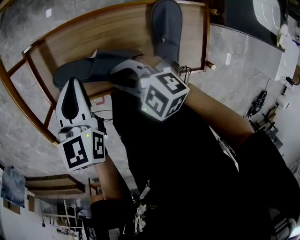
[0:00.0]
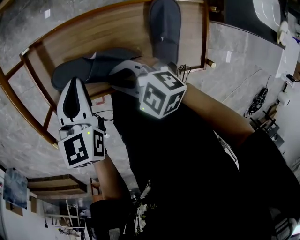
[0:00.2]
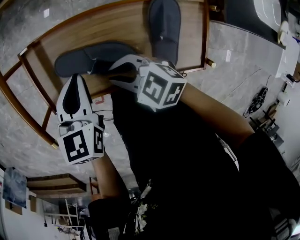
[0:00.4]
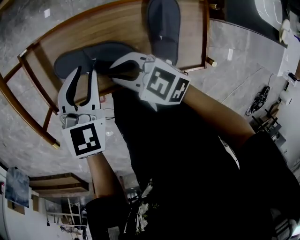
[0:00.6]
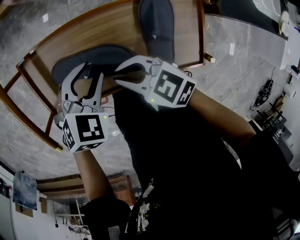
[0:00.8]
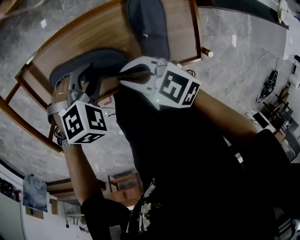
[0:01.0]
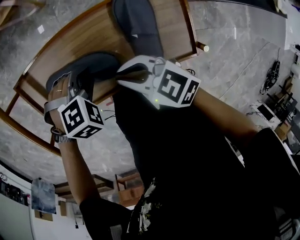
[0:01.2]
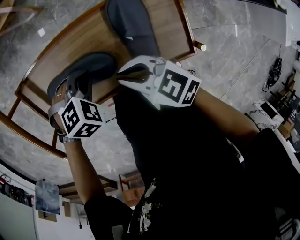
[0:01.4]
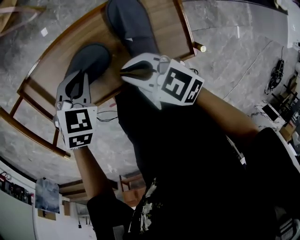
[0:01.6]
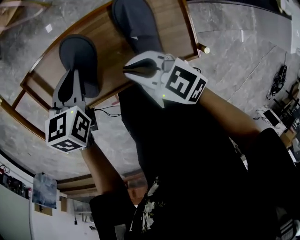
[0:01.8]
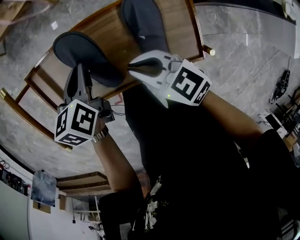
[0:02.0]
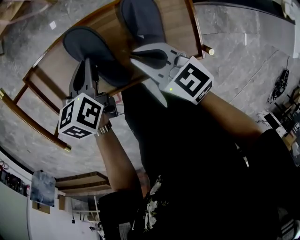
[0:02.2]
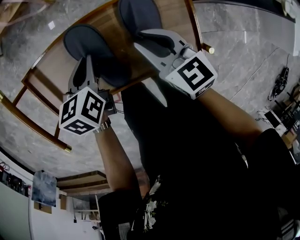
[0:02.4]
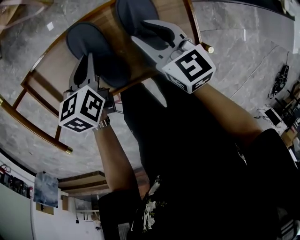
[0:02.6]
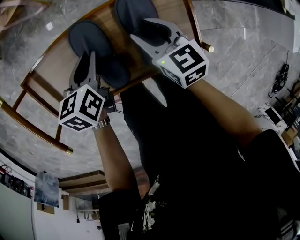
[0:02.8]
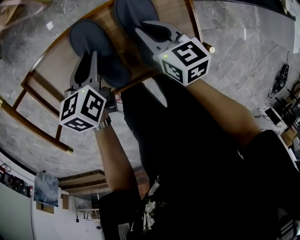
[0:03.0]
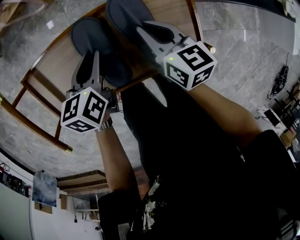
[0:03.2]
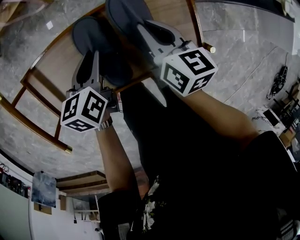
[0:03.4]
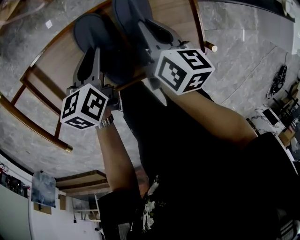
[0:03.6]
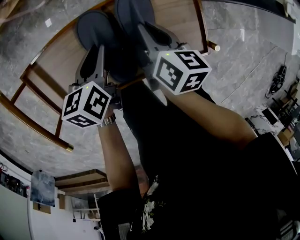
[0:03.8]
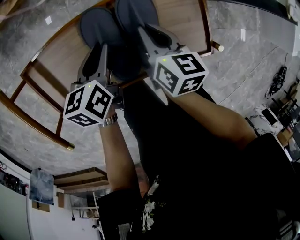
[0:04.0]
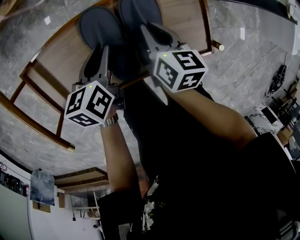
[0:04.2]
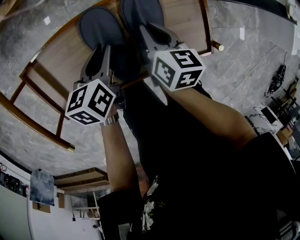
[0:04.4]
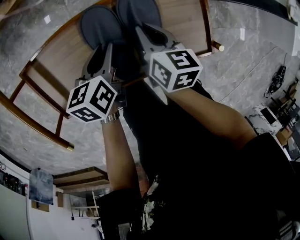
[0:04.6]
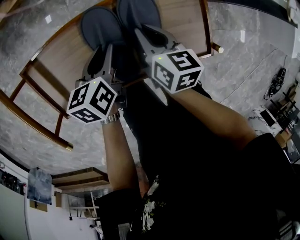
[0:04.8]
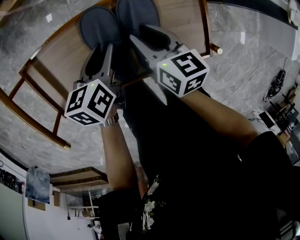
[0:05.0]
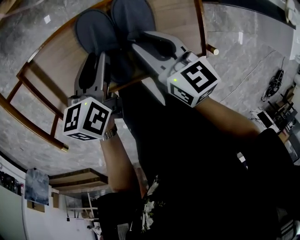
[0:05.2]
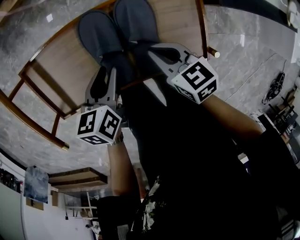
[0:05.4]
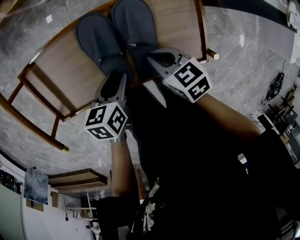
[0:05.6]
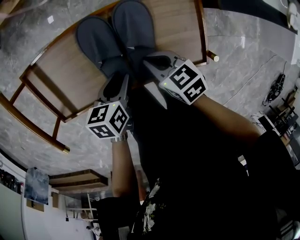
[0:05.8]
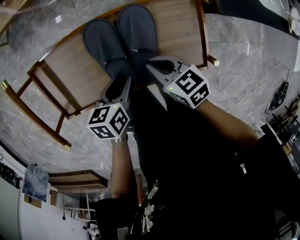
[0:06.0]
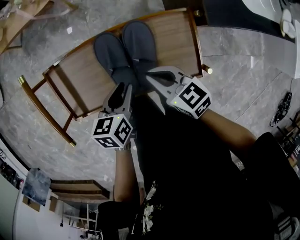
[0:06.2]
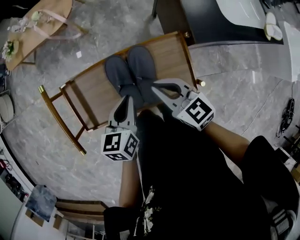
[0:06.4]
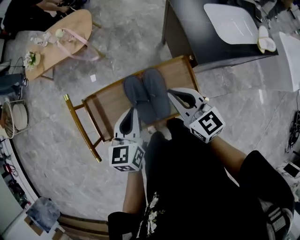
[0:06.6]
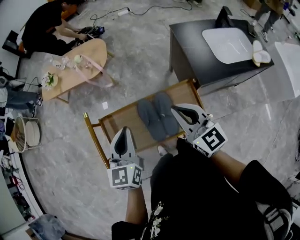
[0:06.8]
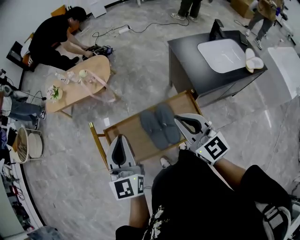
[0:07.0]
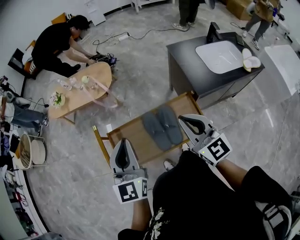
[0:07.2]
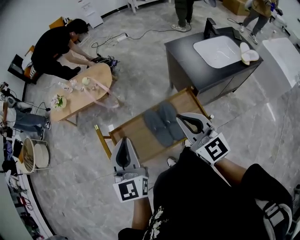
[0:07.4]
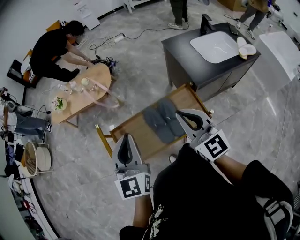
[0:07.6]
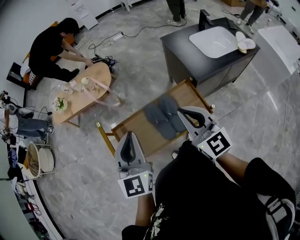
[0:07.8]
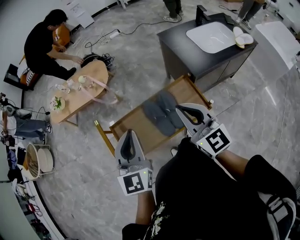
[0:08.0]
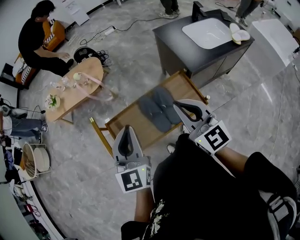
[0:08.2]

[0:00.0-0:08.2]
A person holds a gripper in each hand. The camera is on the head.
0:00.0 to 0:01.6: The left gripper shifts by approximately 15 cm, twists about 50 degrees clockwise, seen from behind, and opens, then closes once more, while the right gripper shifts by some 10 cm, and turns by about 40 degrees.
0:01.6 to 0:03.2: The left gripper rotates around the line of its fingers by about 50 degrees, counterclockwise from behind, while the right gripper is displaced forward and to the right by approximately 10 cm, swivels about 40 degrees, and opens, then closes once more.
0:03.2 to 0:05.0: The right gripper opens up.
0:05.0 to 0:06.6: The grippers both shift upward by approximately 20 cm. The left gripper turns by about 30 degrees, and closes. Meanwhile the right gripper changes its angle by some 30 degrees, and closes up.
0:06.6 to 0:08.2: The left gripper travels upward and to the left by about 20 cm, and rotates about 30 degrees. Meanwhile the right gripper shifts roughly 15 cm upward and backward, and rotates some 30 degrees.

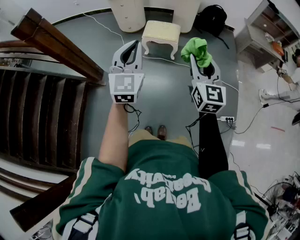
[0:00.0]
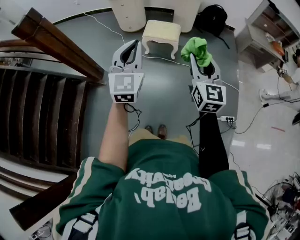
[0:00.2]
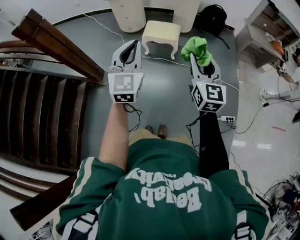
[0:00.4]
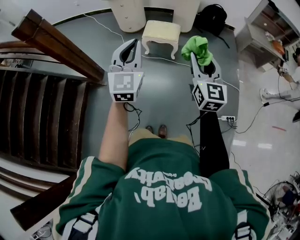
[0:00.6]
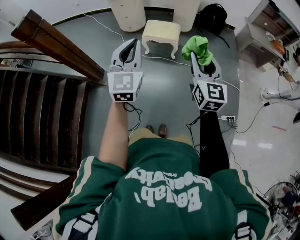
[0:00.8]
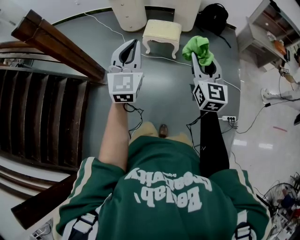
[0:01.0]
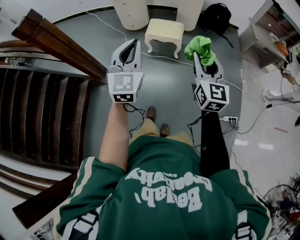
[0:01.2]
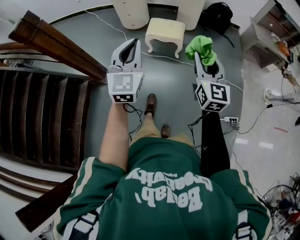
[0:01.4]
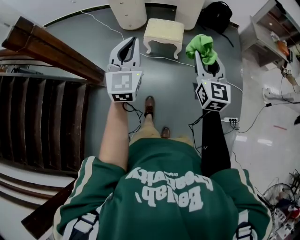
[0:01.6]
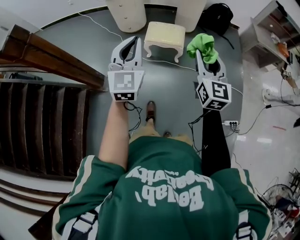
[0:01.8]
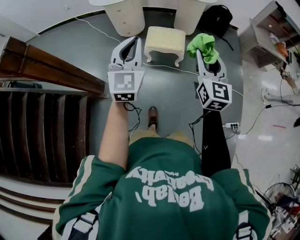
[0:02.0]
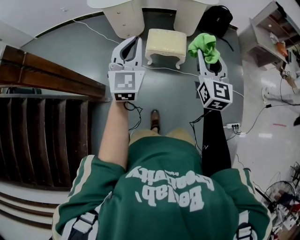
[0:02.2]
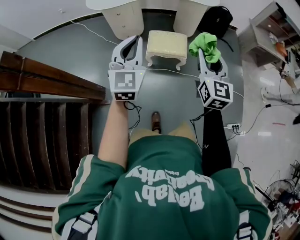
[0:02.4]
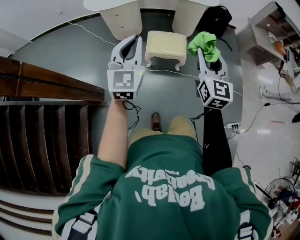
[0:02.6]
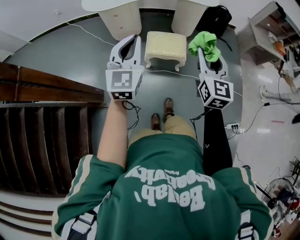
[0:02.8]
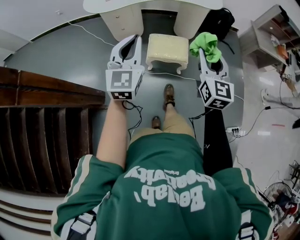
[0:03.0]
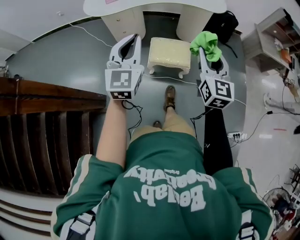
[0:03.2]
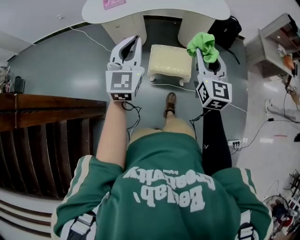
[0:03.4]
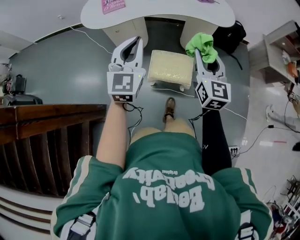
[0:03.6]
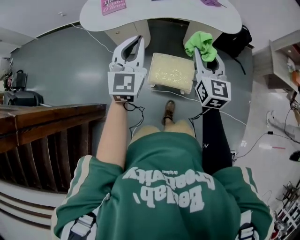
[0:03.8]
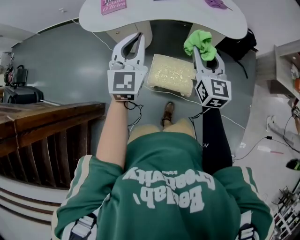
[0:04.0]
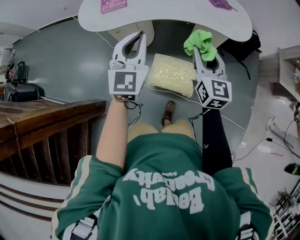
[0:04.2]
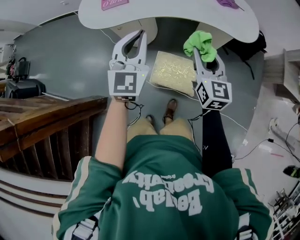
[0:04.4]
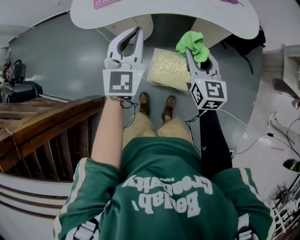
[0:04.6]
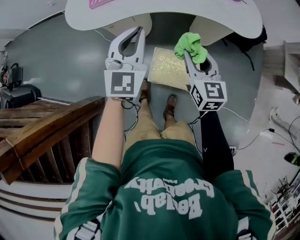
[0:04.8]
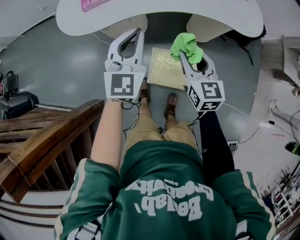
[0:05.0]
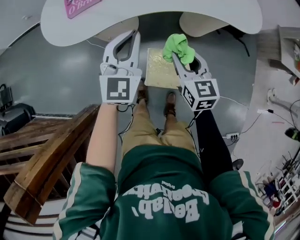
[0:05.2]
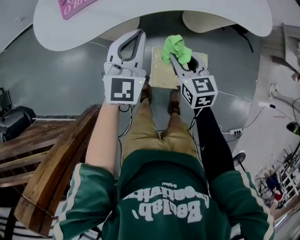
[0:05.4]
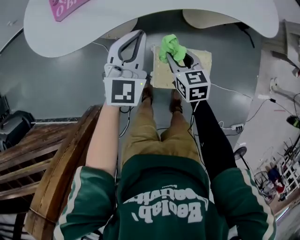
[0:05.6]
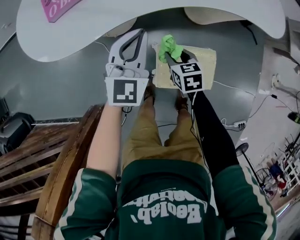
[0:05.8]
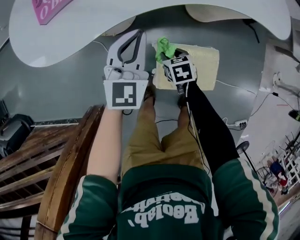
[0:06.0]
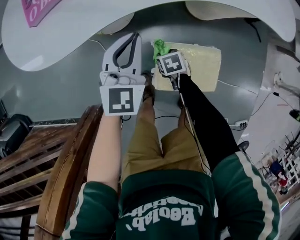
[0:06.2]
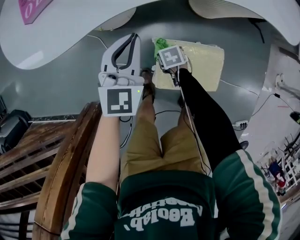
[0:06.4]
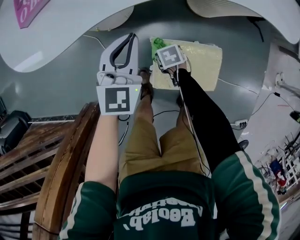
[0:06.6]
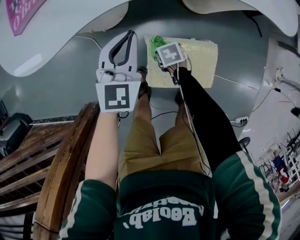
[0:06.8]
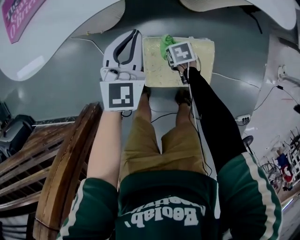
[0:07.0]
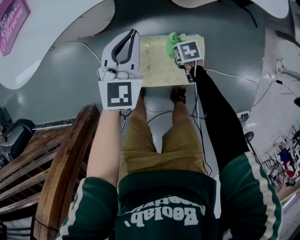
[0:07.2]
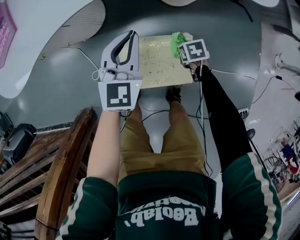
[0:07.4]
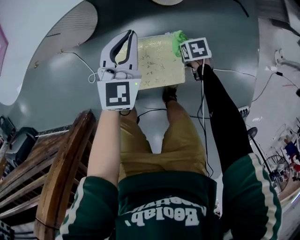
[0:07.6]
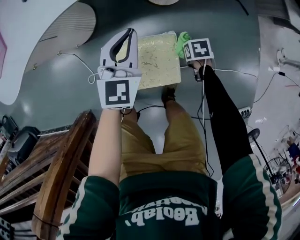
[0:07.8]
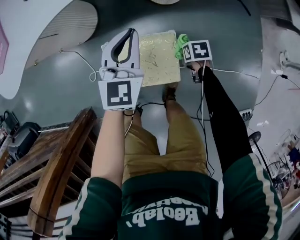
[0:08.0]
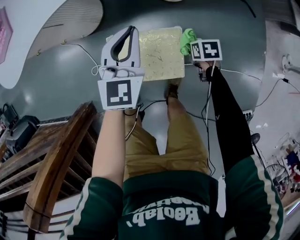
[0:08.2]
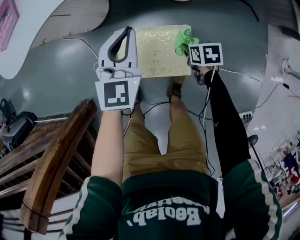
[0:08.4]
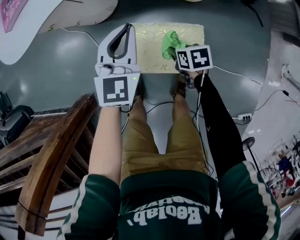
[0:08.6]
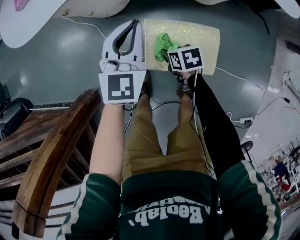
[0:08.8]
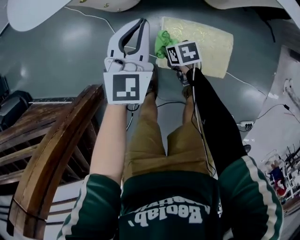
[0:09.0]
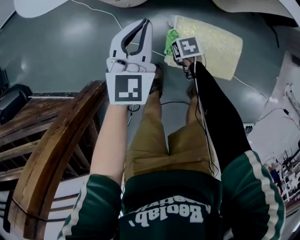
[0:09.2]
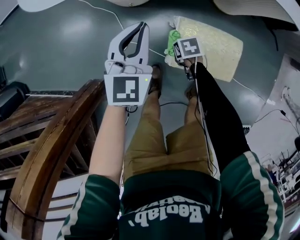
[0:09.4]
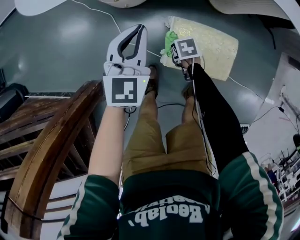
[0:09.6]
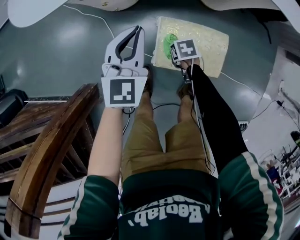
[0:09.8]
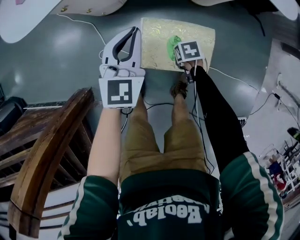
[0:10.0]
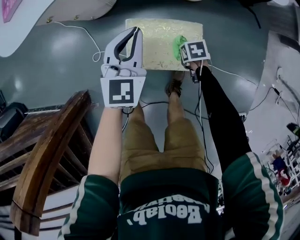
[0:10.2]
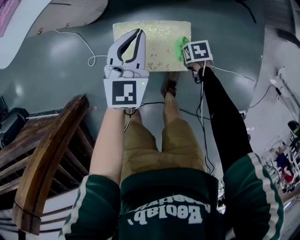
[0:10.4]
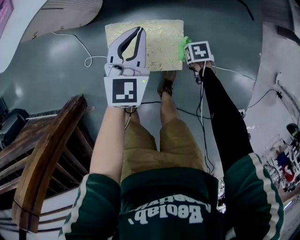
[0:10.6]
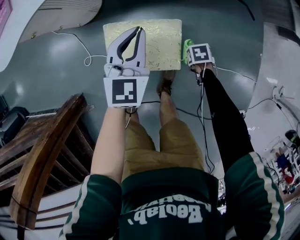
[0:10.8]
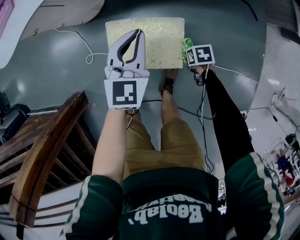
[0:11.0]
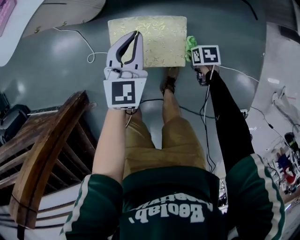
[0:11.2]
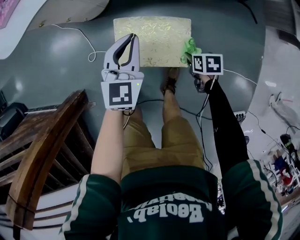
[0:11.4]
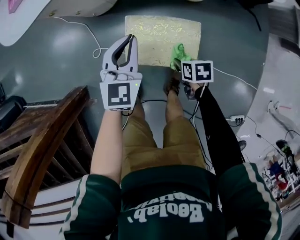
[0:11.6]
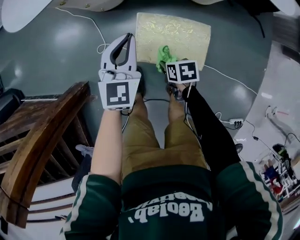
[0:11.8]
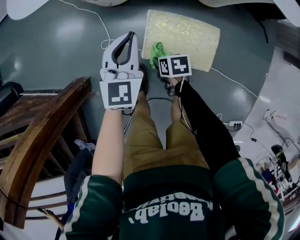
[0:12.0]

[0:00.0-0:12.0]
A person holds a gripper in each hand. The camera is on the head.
0:00.0 to 0:01.6: Both grippers travel together forward, about 10 cm.
0:01.6 to 0:03.0: The two grippers go approximately 25 cm forward.
0:03.0 to 0:04.4: Both grippers move forward, approximately 35 cm.
0:04.4 to 0:06.0: The right gripper heads downward and to the left, covering some 50 cm, and tilts its fingers approximately 50 degrees downward. The left gripper travels downward and forward by approximately 30 cm, and swivels about 20 degrees.
0:06.0 to 0:07.6: The right gripper ends up roughly 35 cm from where it was, and turns by approximately 20 degrees. Meanwhile the left gripper changes place by roughly 25 cm.
0:07.6 to 0:09.0: The left gripper ends up roughly 25 cm from where it was. Meanwhile the right gripper moves about 35 cm, and swivels roughly 20 degrees.
0:09.0 to 0:10.4: The left gripper moves roughly 20 cm. The right gripper changes place by about 30 cm, and rotates approximately 20 degrees.
0:10.4 to 0:12.0: The left gripper changes place by about 20 cm, while the right gripper ends up approximately 30 cm from where it was.

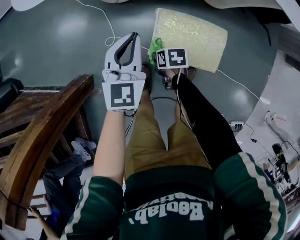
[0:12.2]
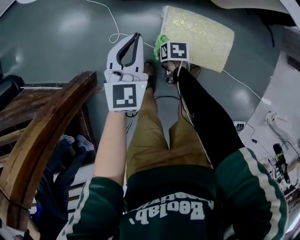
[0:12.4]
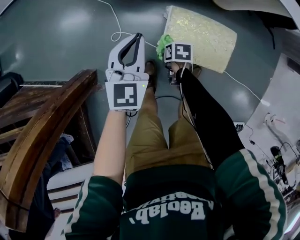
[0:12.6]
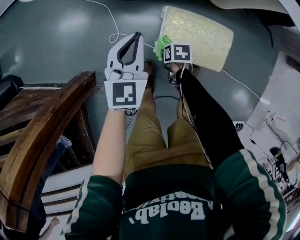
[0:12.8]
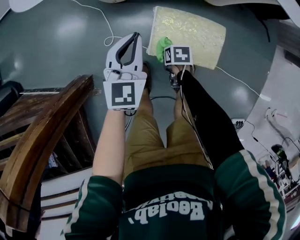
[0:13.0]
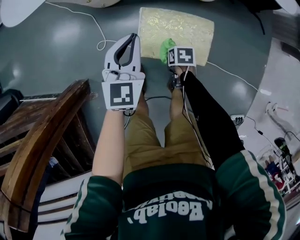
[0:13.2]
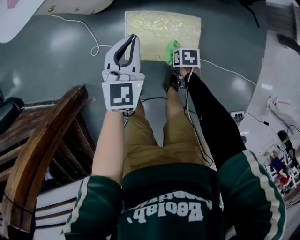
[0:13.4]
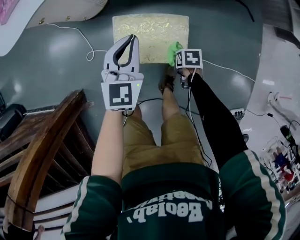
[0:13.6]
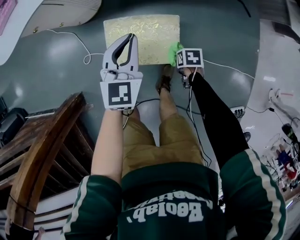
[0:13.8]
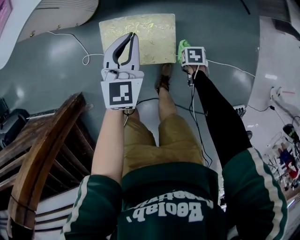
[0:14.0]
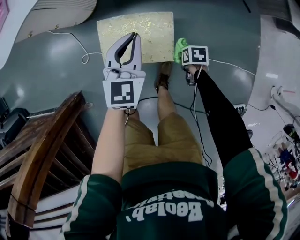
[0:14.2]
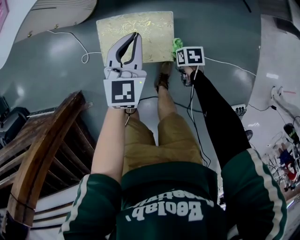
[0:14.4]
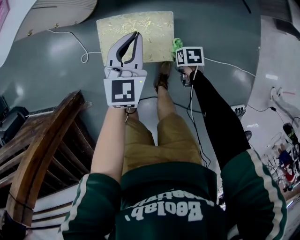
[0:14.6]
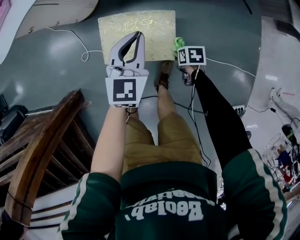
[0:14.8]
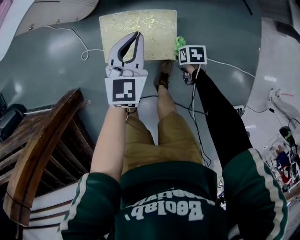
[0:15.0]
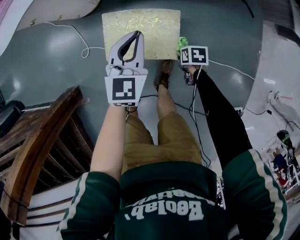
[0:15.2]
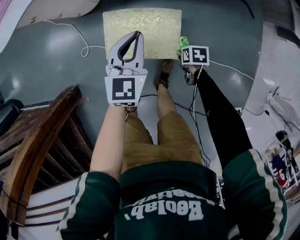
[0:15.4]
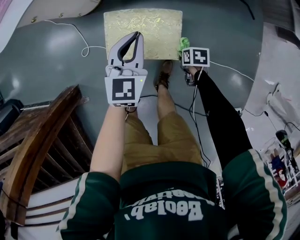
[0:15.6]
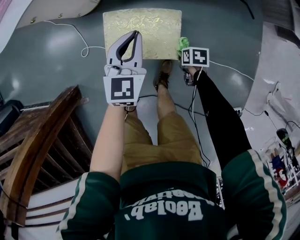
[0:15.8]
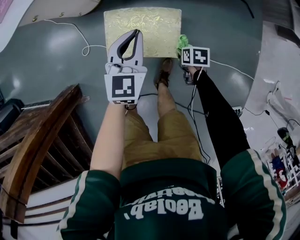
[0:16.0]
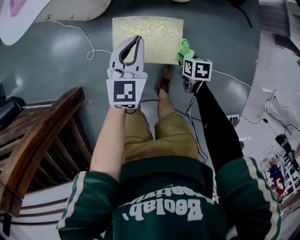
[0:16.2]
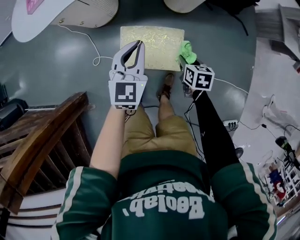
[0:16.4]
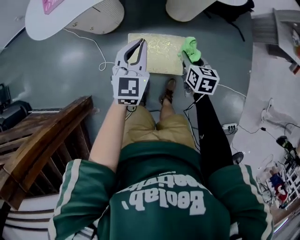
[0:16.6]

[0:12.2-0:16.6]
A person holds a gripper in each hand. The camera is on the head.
0:12.2 to 0:13.6: The left gripper shifts by roughly 20 cm. Meanwhile the right gripper ends up roughly 30 cm from where it was.
0:13.6 to 0:15.2: The left gripper changes place by approximately 5 cm.
0:15.2 to 0:16.6: The left gripper goes some 15 cm upward; the right gripper heads upward, covering some 25 cm, and swivels approximately 40 degrees.
